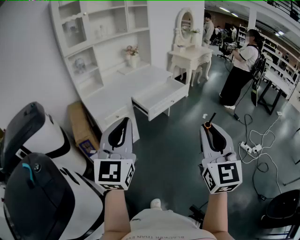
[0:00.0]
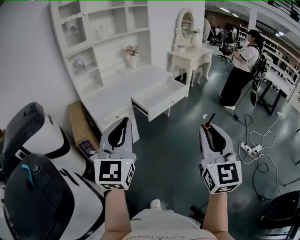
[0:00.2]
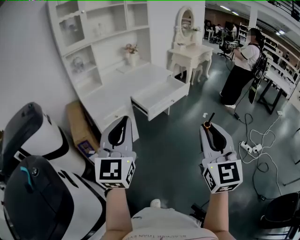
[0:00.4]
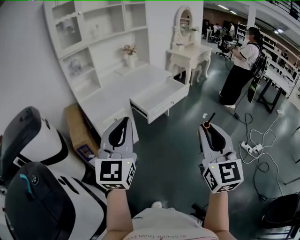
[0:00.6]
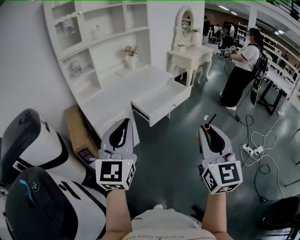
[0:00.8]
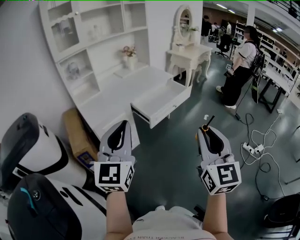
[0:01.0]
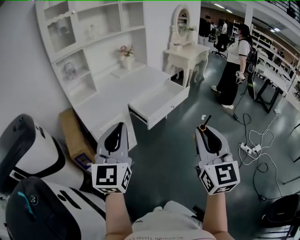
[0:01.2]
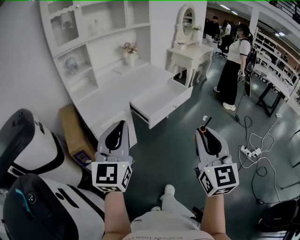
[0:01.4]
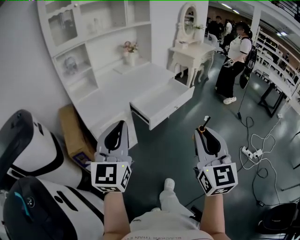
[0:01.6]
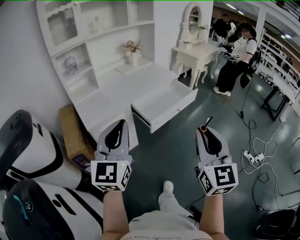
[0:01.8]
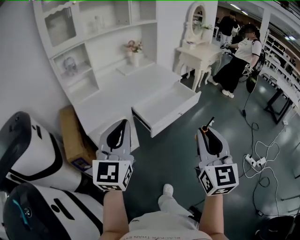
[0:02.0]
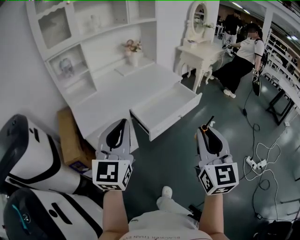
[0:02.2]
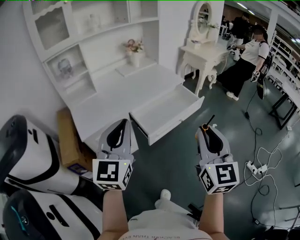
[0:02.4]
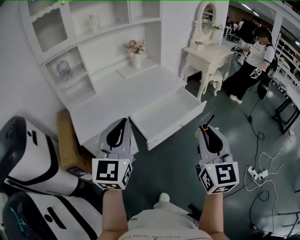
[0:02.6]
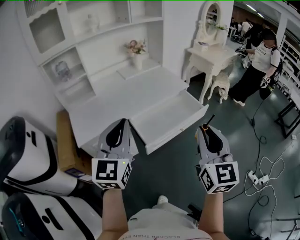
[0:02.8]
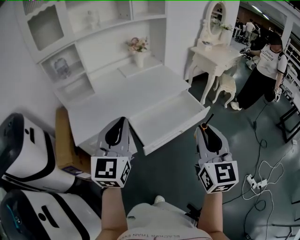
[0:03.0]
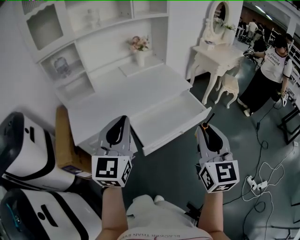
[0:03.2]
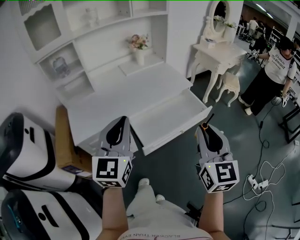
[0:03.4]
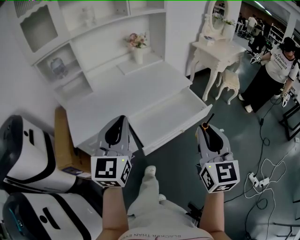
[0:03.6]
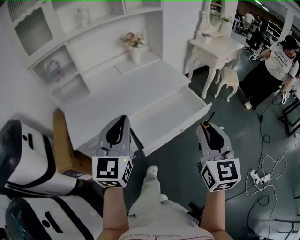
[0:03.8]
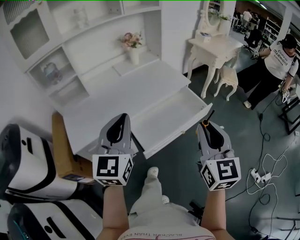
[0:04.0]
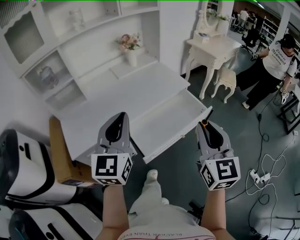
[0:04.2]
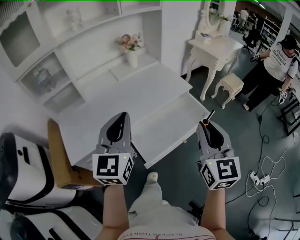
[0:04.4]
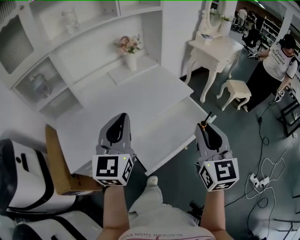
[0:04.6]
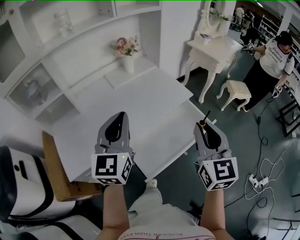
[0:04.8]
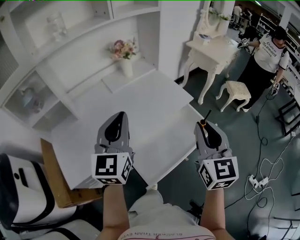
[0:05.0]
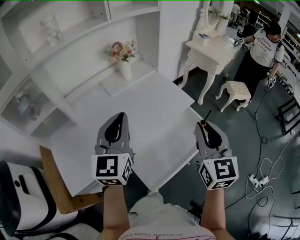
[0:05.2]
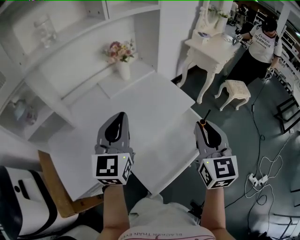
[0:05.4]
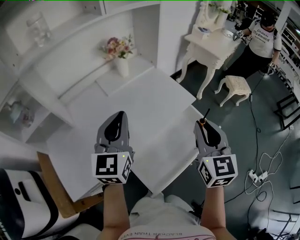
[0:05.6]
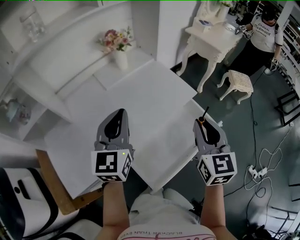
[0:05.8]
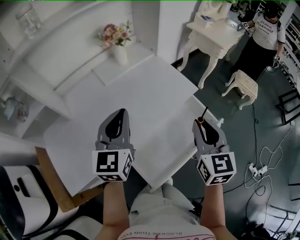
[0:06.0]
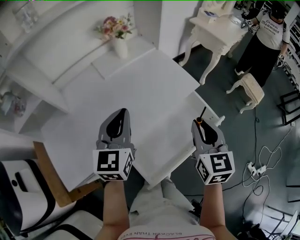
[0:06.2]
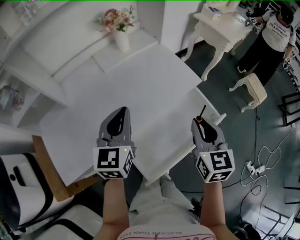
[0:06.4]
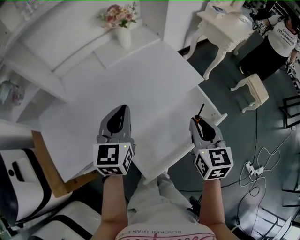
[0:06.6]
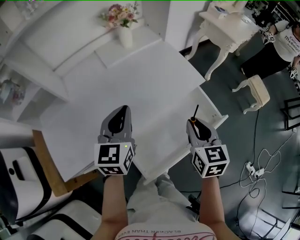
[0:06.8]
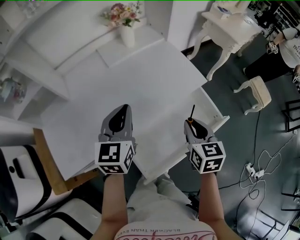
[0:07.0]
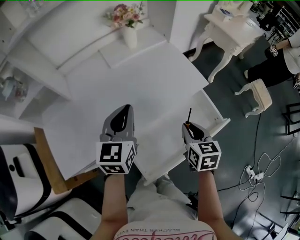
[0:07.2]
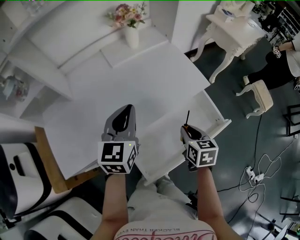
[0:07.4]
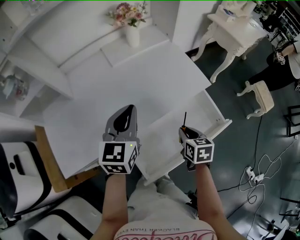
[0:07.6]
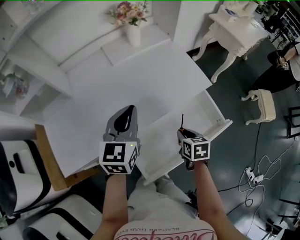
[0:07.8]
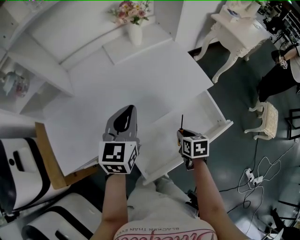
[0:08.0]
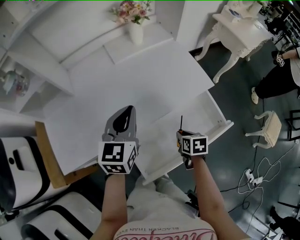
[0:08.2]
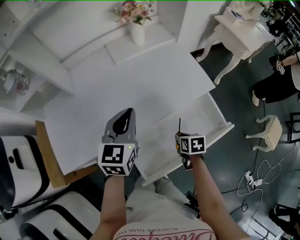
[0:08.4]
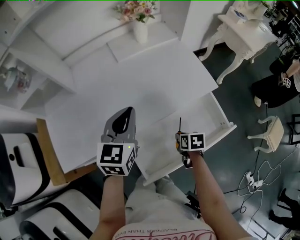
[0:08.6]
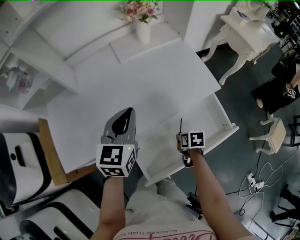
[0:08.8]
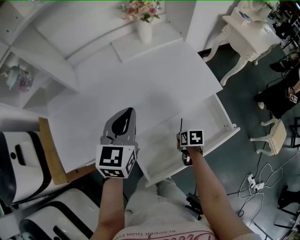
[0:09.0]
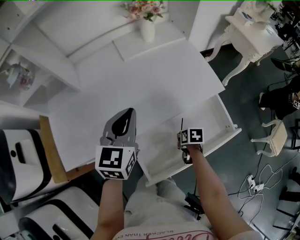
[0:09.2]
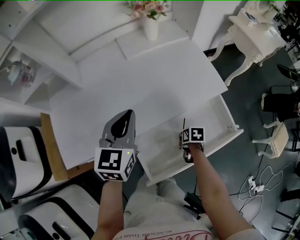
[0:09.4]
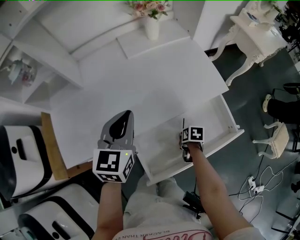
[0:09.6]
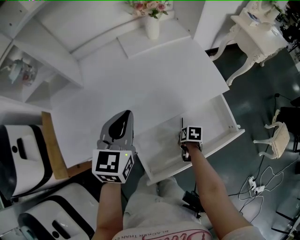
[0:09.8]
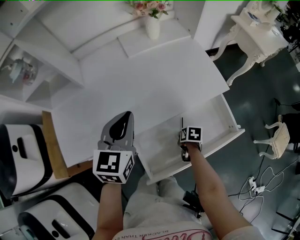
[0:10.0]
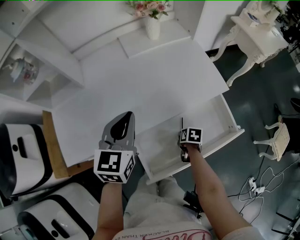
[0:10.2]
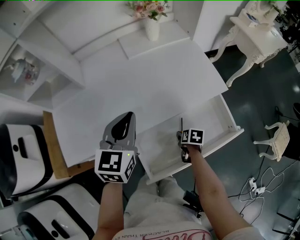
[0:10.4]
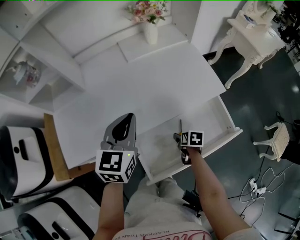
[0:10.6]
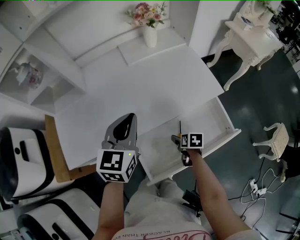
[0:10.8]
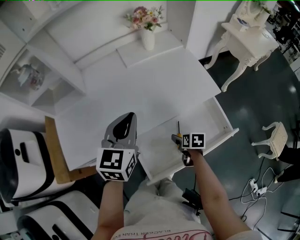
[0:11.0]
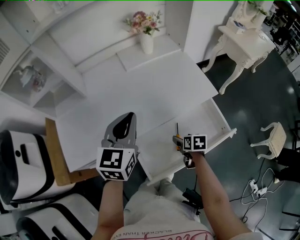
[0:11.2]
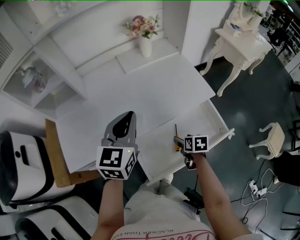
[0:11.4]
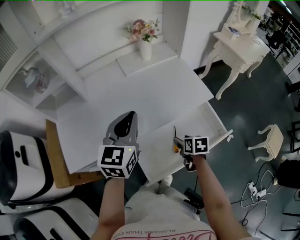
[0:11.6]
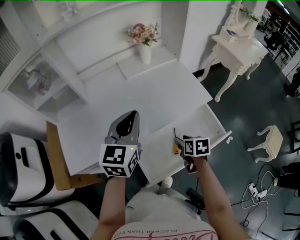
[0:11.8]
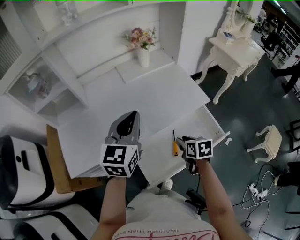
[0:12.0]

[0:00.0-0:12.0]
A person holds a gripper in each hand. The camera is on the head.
0:00.0 to 0:01.6: Both grippers move forward, roughly 15 cm.
0:01.6 to 0:03.0: Both grippers travel together forward, about 30 cm.
0:03.0 to 0:04.4: Both grippers move forward, about 15 cm.
0:04.4 to 0:06.0: The two grippers go about 20 cm forward.
0:06.0 to 0:07.6: The left gripper shifts about 5 cm downward, while the right gripper moves downward, some 20 cm, and tips its fingers downward by approximately 30 degrees.
0:07.6 to 0:09.0: The right gripper is displaced downward by approximately 15 cm, and rotates approximately 30 degrees.
0:09.0 to 0:10.4: The right gripper opens its fingers.
0:10.4 to 0:12.0: The right gripper moves upward, roughly 20 cm, changes its angle by some 20 degrees, and opens, then closes once more; the left gripper moves upward, some 10 cm.

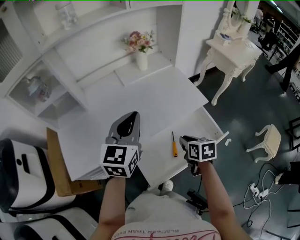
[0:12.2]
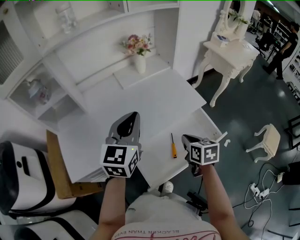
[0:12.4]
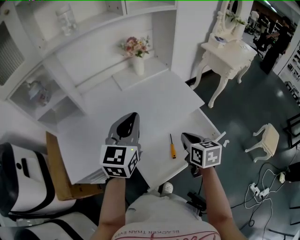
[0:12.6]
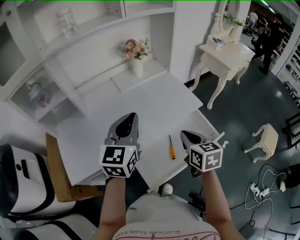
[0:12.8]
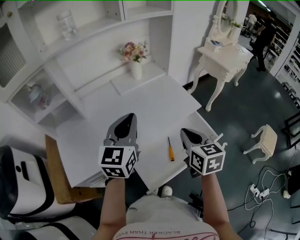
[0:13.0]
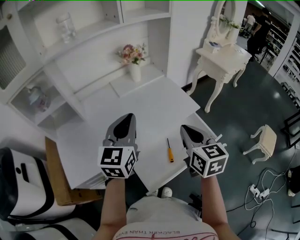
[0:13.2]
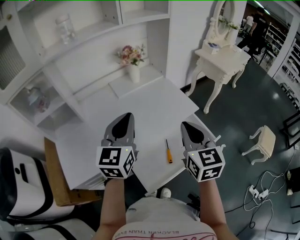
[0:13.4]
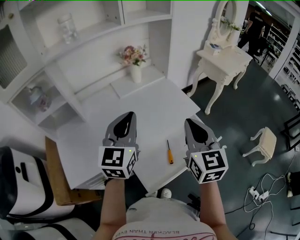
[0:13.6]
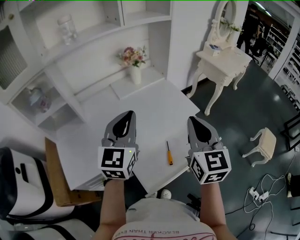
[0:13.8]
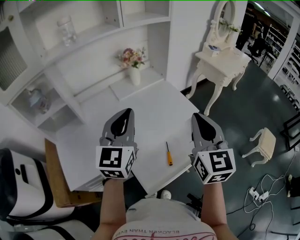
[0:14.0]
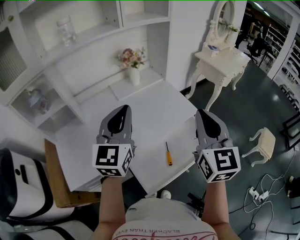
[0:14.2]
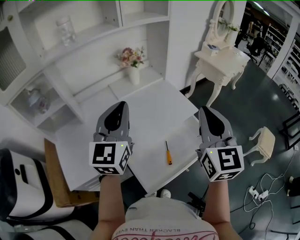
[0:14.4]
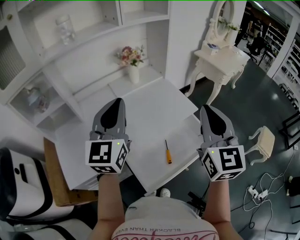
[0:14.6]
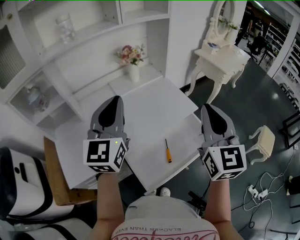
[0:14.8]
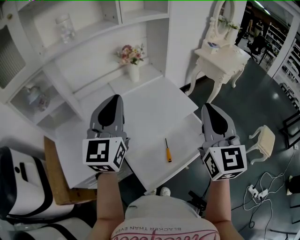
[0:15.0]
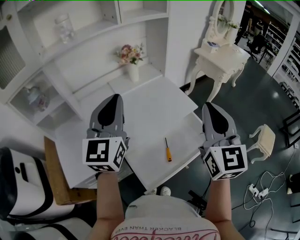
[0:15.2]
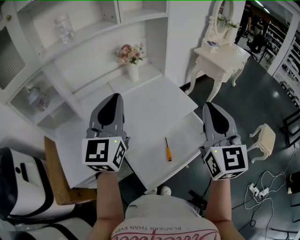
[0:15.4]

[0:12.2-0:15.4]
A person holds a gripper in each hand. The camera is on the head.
0:12.2 to 0:13.8: The left gripper travels upward by roughly 5 cm. Meanwhile the right gripper moves upward, some 25 cm, and tilts its fingers roughly 40 degrees upward.
0:13.8 to 0:15.4: Both grippers move upward, roughly 5 cm.

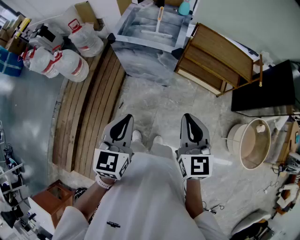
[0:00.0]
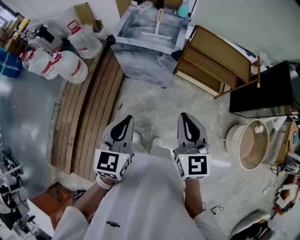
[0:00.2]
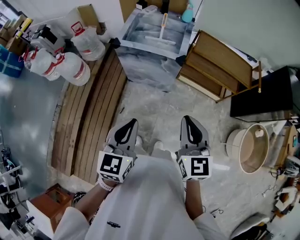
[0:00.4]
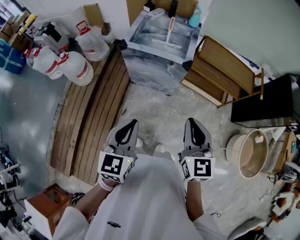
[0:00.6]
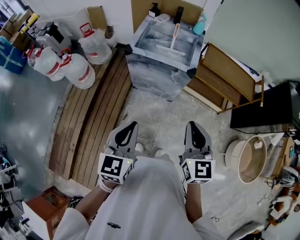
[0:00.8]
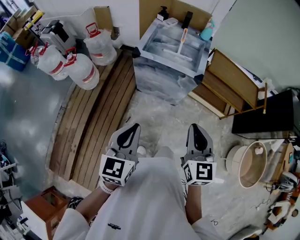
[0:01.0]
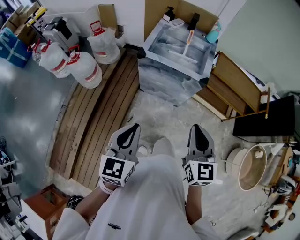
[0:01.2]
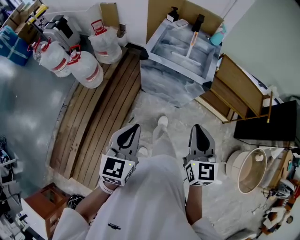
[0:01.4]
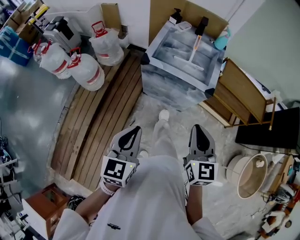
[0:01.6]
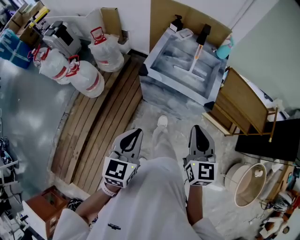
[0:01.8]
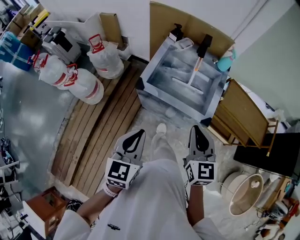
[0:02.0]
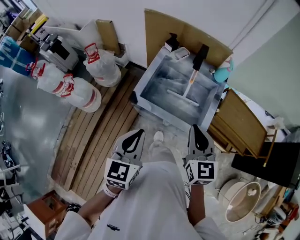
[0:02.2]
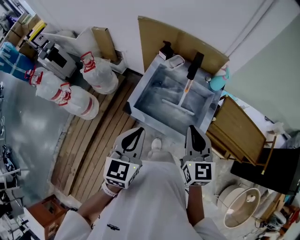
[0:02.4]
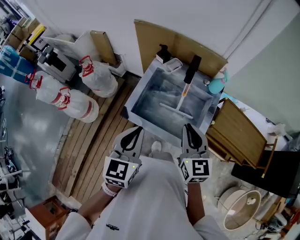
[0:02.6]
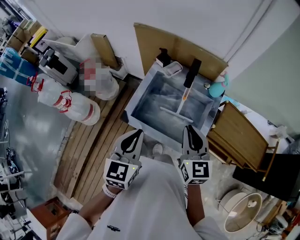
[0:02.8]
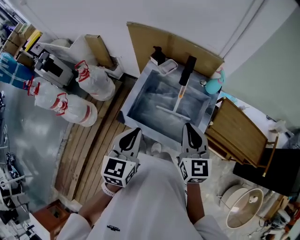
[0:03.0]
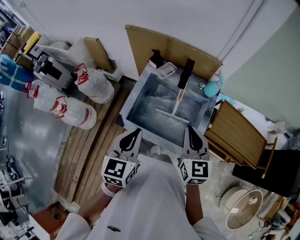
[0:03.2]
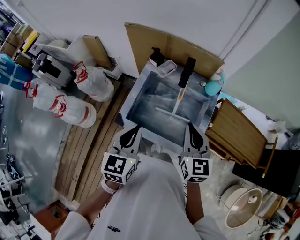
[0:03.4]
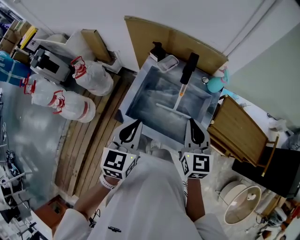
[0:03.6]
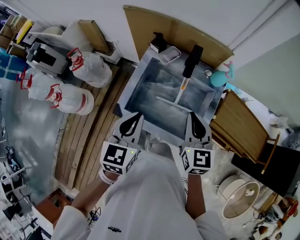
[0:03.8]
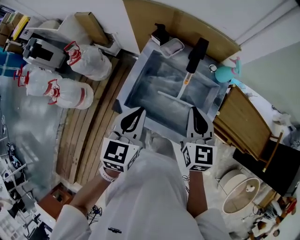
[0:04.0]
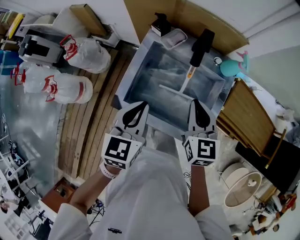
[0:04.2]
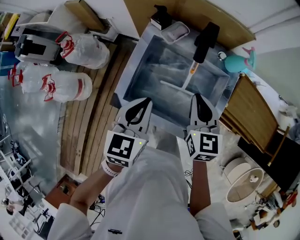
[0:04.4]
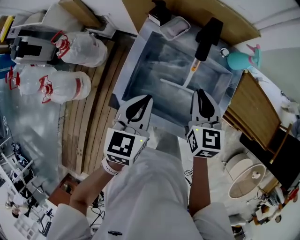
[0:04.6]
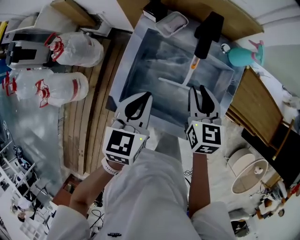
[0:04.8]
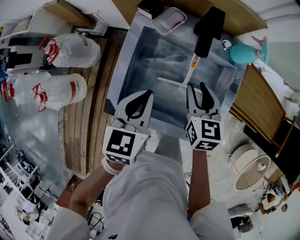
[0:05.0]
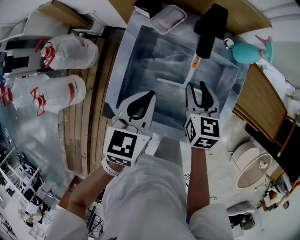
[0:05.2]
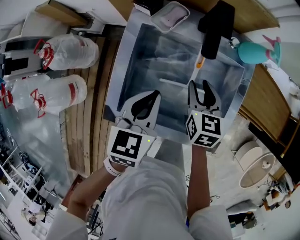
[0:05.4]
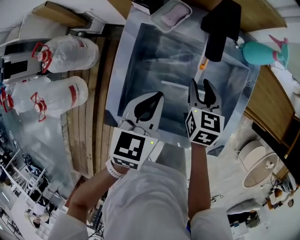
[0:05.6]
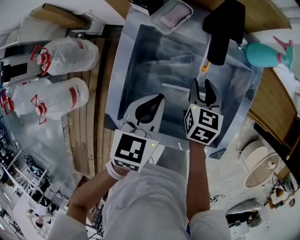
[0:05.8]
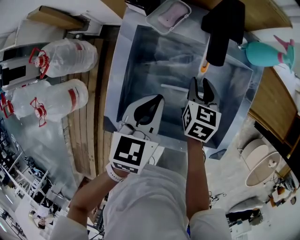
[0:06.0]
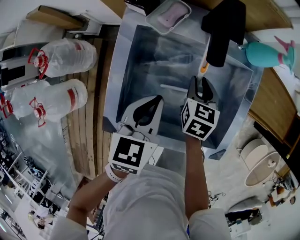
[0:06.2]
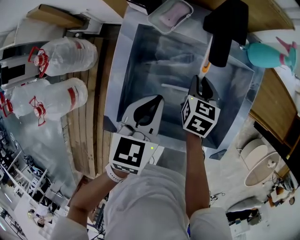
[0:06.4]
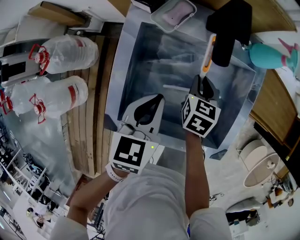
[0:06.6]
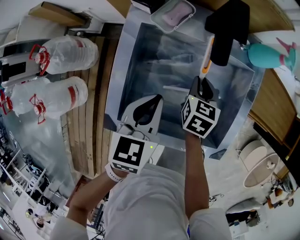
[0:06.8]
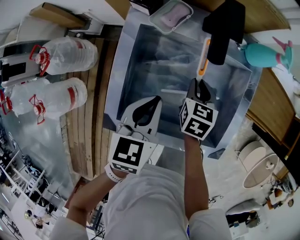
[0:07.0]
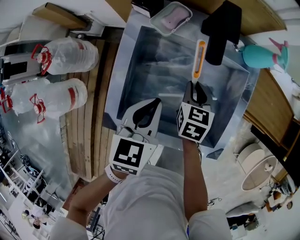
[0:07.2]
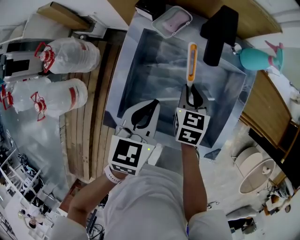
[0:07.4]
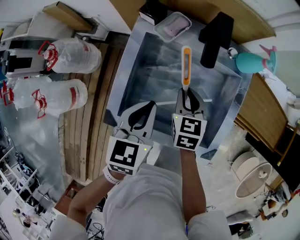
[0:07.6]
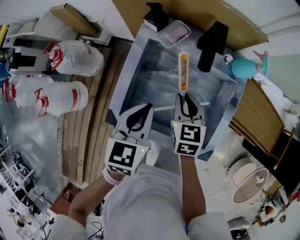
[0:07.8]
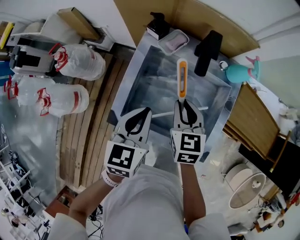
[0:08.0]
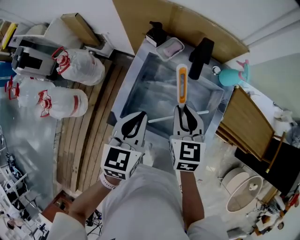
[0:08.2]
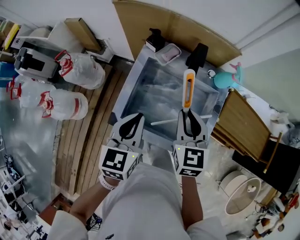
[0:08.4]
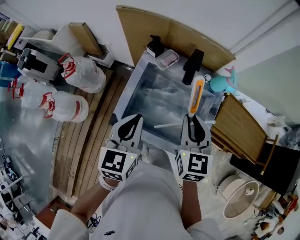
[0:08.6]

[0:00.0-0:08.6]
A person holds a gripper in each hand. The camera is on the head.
0:00.0 to 0:01.4: Both grippers travel together to the left and forward, about 20 cm.
0:01.4 to 0:02.8: Both grippers are carried forward, about 40 cm.
0:02.8 to 0:04.4: The left gripper heads forward and downward, covering approximately 15 cm. The right gripper travels downward and forward by some 15 cm.
0:04.4 to 0:05.8: The right gripper moves downward, some 20 cm, swivels roughly 30 degrees, and opens, while the left gripper travels downward and forward by roughly 15 cm.
0:05.8 to 0:07.2: The grippers stay close to where they were, moving slightly.
0:07.2 to 0:08.6: The left gripper is displaced upward by approximately 20 cm. Meanwhile the right gripper moves upward, approximately 30 cm, and turns by about 30 degrees.
